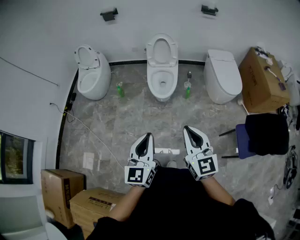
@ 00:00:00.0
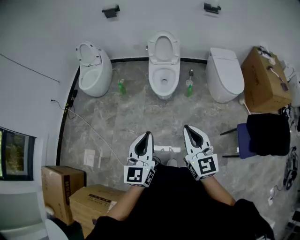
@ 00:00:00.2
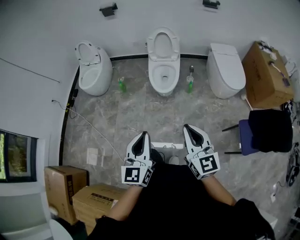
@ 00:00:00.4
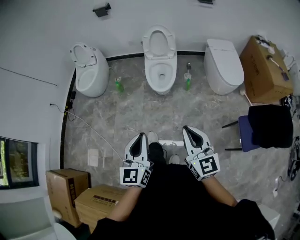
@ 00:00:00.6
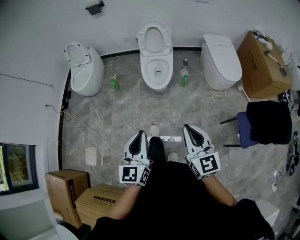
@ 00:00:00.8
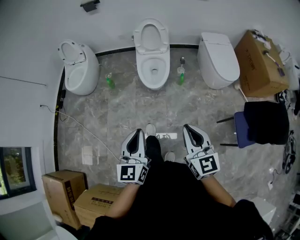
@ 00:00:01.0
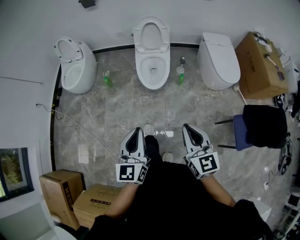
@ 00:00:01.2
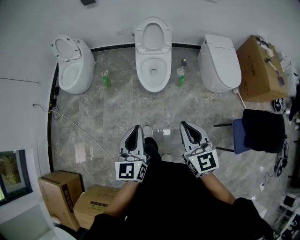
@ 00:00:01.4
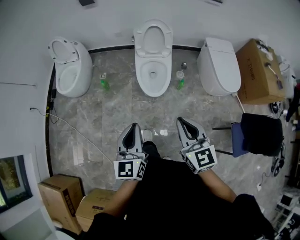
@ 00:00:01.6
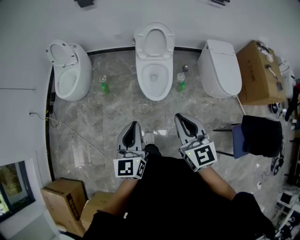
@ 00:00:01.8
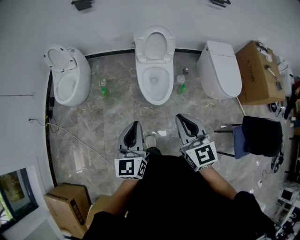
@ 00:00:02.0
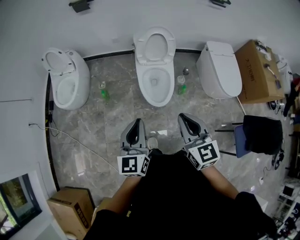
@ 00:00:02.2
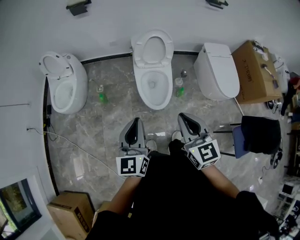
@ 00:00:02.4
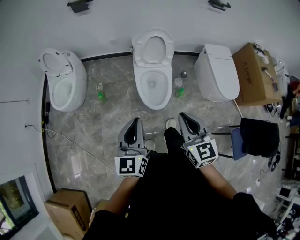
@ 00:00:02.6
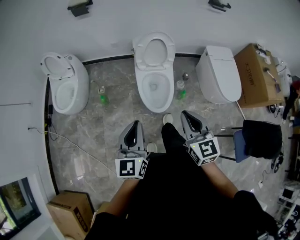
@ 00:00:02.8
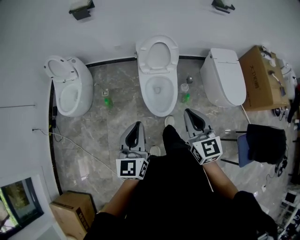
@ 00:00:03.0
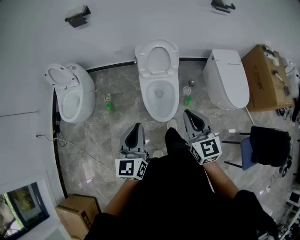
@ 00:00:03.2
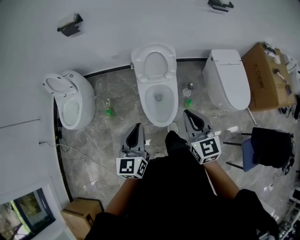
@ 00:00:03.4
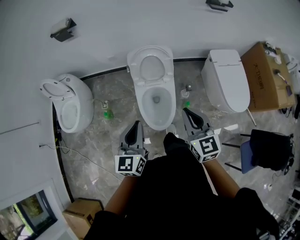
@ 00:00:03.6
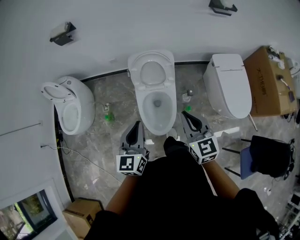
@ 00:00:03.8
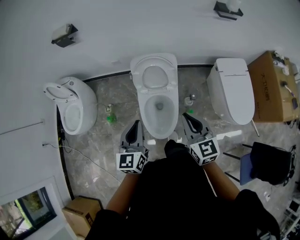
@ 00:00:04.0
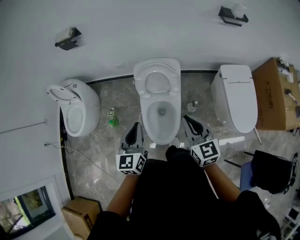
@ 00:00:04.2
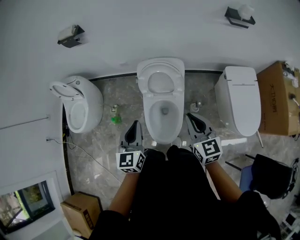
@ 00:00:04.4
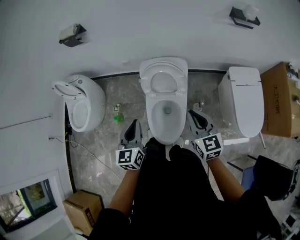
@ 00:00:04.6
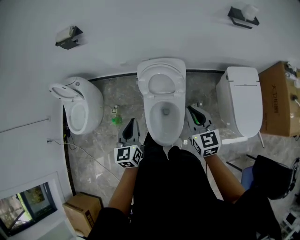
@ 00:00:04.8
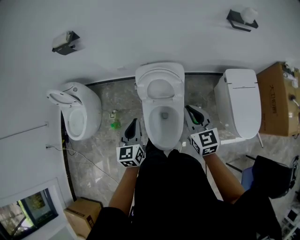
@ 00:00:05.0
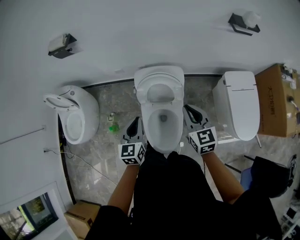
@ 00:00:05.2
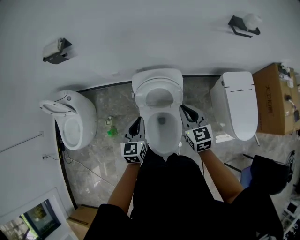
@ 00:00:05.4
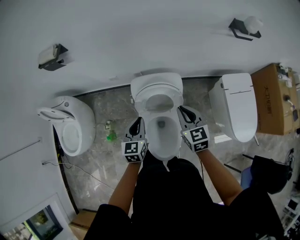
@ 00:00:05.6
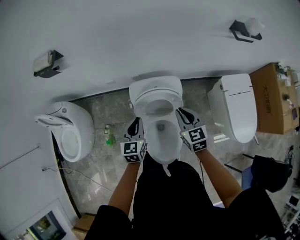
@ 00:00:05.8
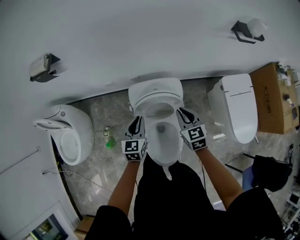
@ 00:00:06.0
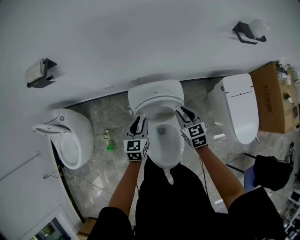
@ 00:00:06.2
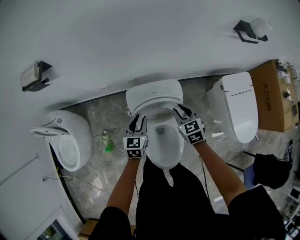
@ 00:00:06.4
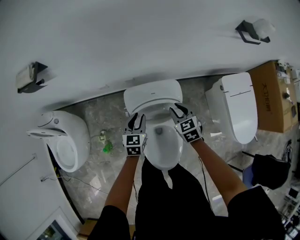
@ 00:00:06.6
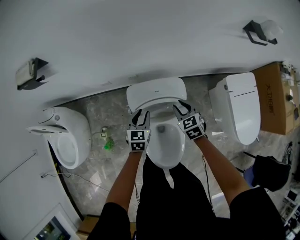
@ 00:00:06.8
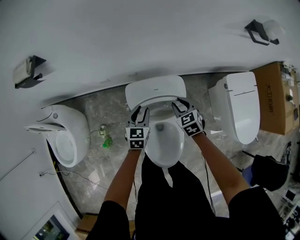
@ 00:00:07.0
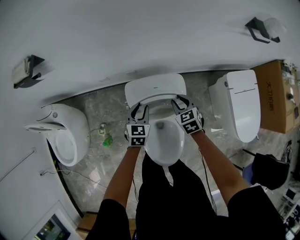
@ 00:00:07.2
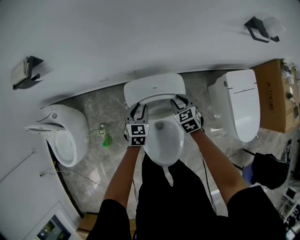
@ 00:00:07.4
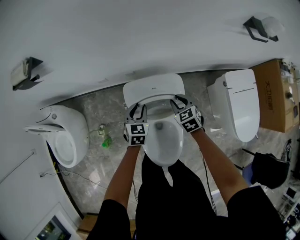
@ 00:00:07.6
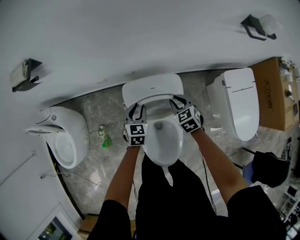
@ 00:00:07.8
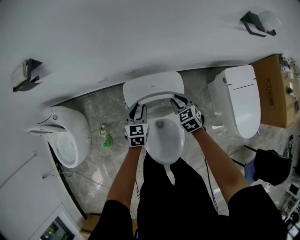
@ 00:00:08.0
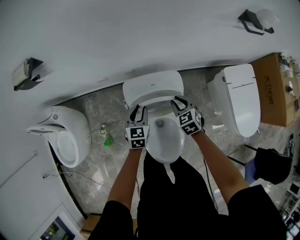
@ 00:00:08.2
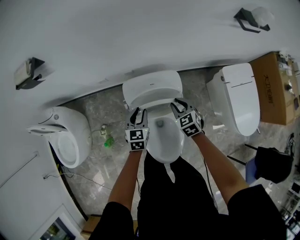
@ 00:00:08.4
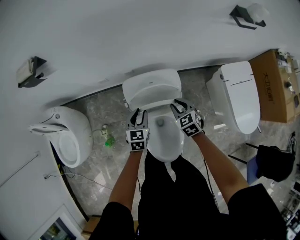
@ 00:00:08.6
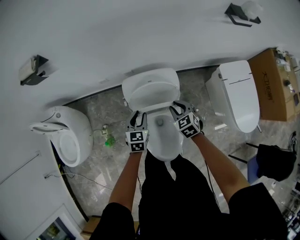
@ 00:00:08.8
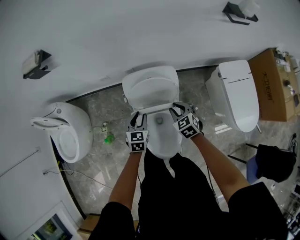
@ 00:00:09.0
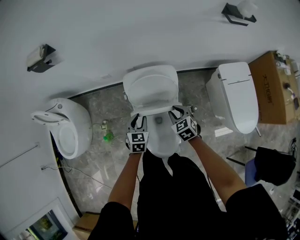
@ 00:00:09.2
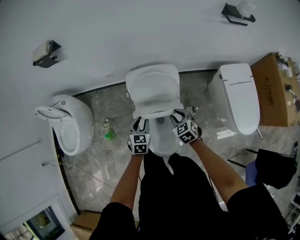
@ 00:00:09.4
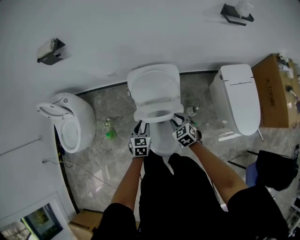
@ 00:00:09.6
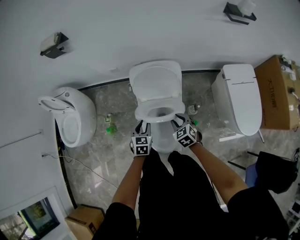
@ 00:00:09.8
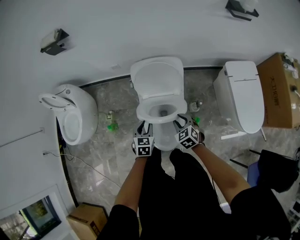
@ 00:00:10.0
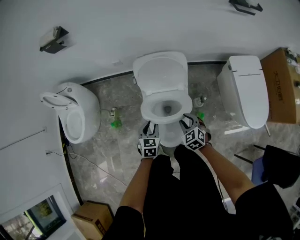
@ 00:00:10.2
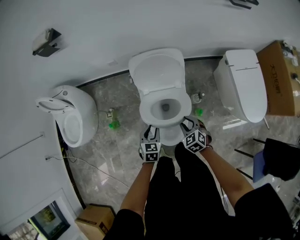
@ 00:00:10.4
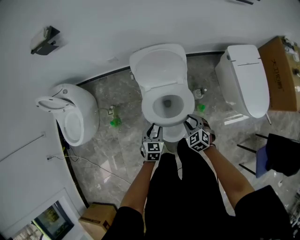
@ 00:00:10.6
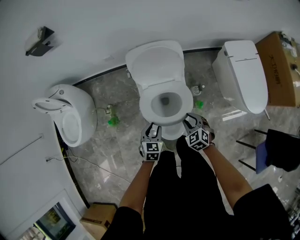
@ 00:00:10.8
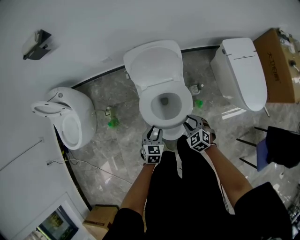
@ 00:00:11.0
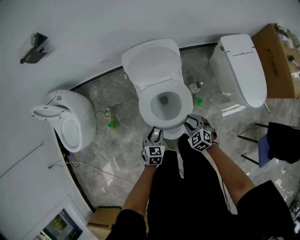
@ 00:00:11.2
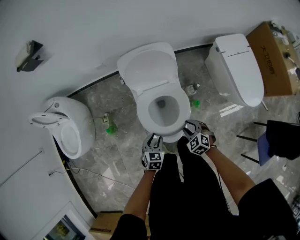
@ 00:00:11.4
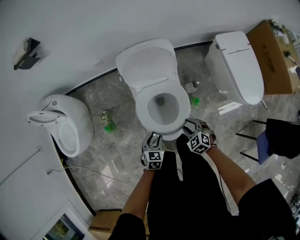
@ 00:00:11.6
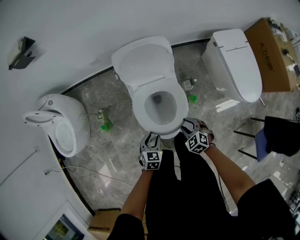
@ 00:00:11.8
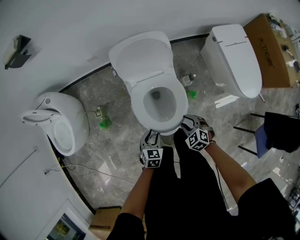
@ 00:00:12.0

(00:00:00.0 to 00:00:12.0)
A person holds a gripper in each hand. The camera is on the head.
00:00:00.0 - 00:00:01.6: The two grippers go some 25 cm forward.
00:00:01.6 - 00:00:03.0: The two grippers go some 20 cm forward.
00:00:03.0 - 00:00:04.4: Both grippers move forward and to the right, roughly 30 cm.
00:00:04.4 - 00:00:06.0: The grippers both shift forward and downward by about 30 cm.
00:00:06.0 - 00:00:07.6: Both grippers move downward and forward, approximately 15 cm. The left gripper opens up.
00:00:07.6 - 00:00:09.0: The grippers both shift backward by approximately 15 cm.
00:00:09.0 - 00:00:10.4: The grippers both shift backward by roughly 20 cm.
00:00:10.4 - 00:00:12.0: Both grippers travel together backward and downward, roughly 10 cm.

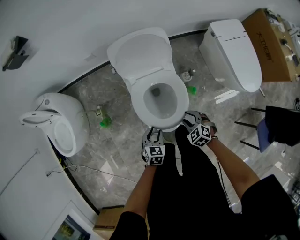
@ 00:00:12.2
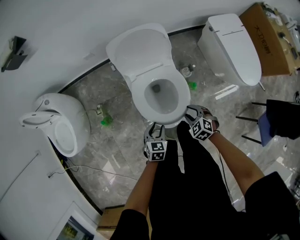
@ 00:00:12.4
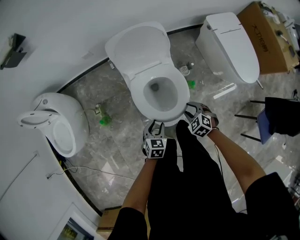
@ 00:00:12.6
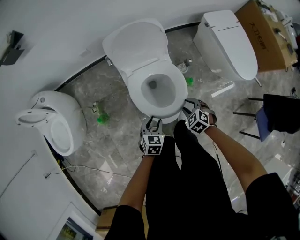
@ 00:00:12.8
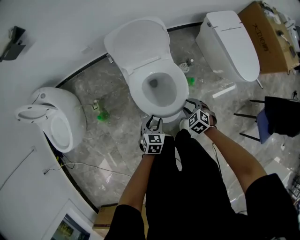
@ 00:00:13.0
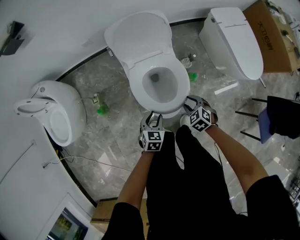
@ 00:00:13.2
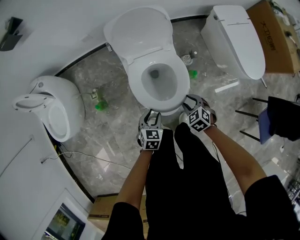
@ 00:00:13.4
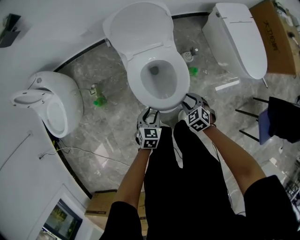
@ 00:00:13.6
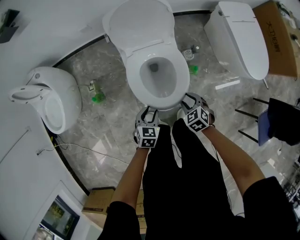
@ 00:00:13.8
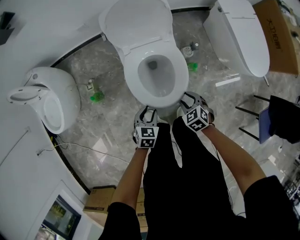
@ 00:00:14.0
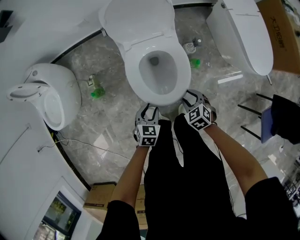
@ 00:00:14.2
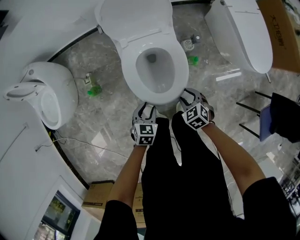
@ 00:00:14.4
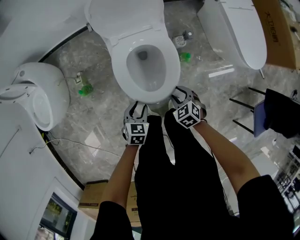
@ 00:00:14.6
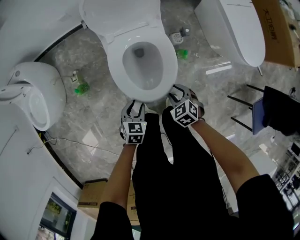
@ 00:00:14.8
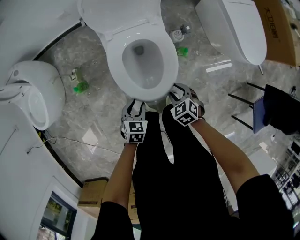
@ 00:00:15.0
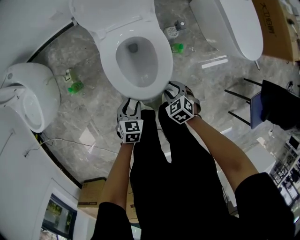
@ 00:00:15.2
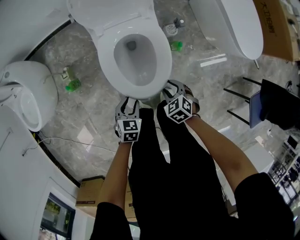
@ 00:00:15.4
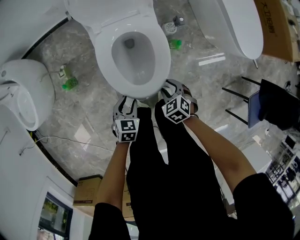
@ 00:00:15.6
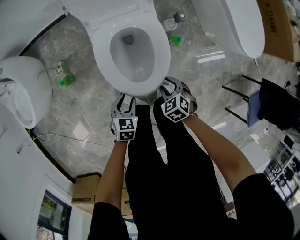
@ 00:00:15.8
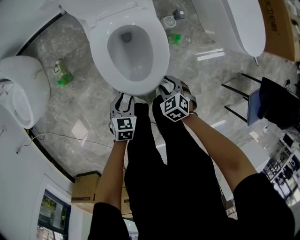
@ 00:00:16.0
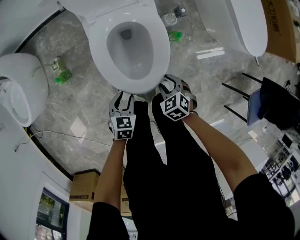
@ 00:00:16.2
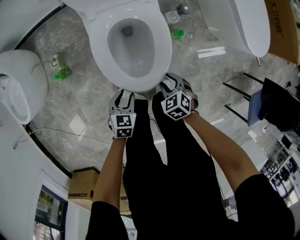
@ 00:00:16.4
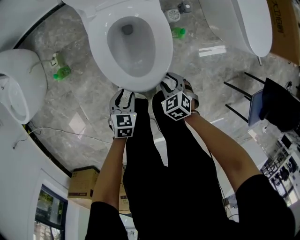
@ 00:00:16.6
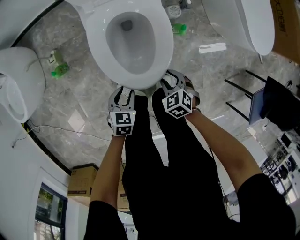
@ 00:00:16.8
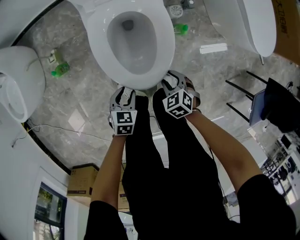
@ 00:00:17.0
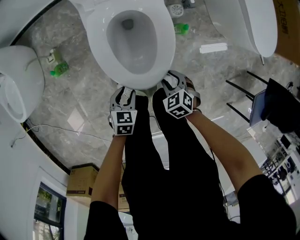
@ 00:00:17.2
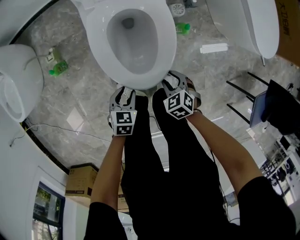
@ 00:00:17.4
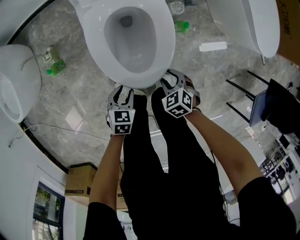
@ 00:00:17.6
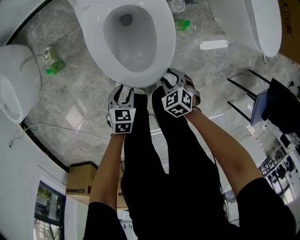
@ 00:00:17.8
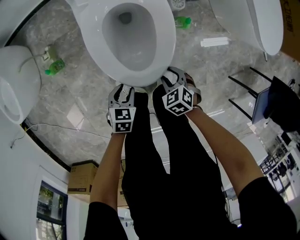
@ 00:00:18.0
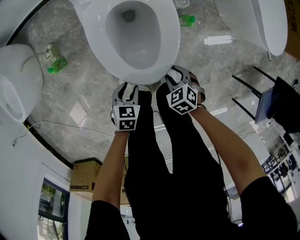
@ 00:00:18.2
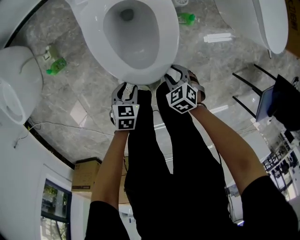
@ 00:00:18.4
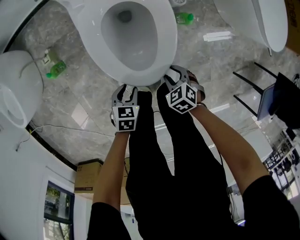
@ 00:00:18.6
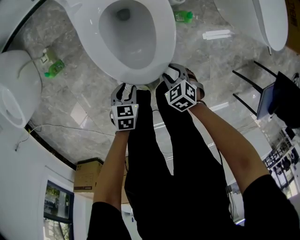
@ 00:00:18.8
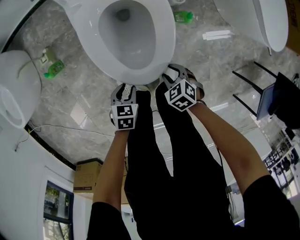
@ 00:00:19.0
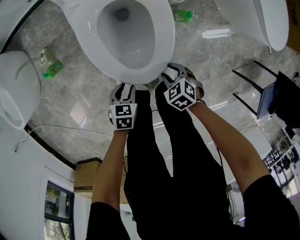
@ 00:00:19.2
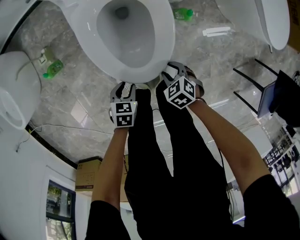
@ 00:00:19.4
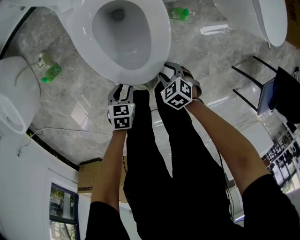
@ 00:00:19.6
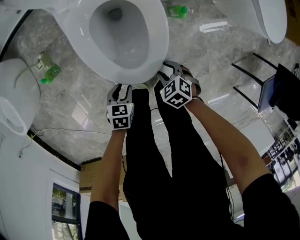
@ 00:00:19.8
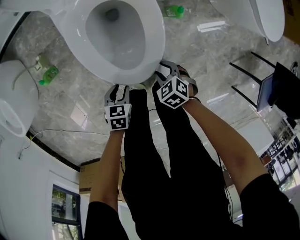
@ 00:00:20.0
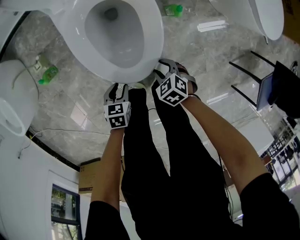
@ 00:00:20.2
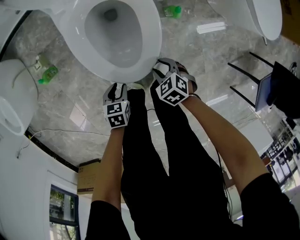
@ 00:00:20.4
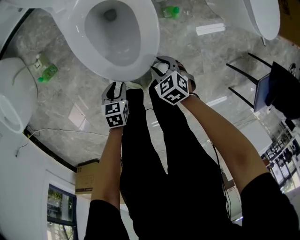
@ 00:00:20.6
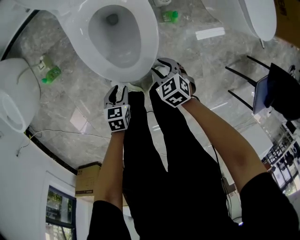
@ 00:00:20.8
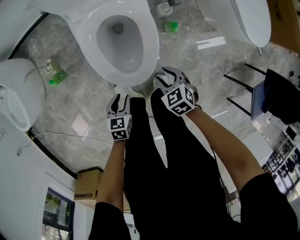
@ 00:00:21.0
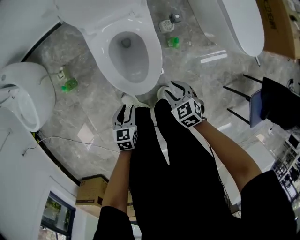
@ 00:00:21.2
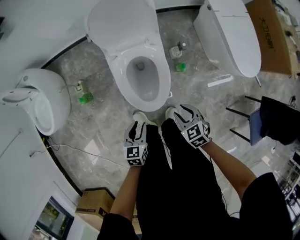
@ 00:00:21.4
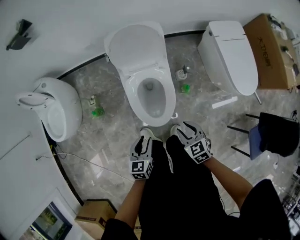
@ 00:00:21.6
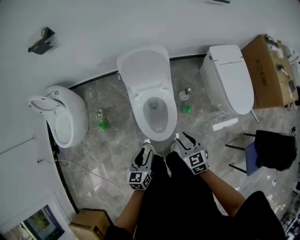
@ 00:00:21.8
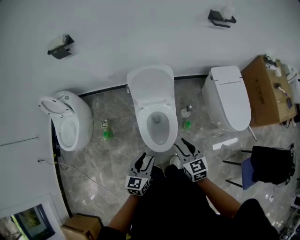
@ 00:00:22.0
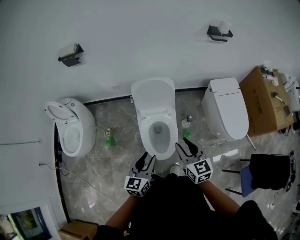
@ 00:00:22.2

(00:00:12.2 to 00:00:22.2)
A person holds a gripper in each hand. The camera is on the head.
00:00:12.2 - 00:00:13.6: The grippers make only small movements.
00:00:13.6 - 00:00:15.0: The two grippers go roughly 5 cm downward.
00:00:15.0 - 00:00:16.4: Both grippers move downward, some 5 cm.
00:00:16.4 - 00:00:18.0: Both grippers travel together downward, some 10 cm.
00:00:18.0 - 00:00:19.4: The grippers move only a little.
00:00:19.4 - 00:00:20.8: The right gripper moves upward, some 5 cm.
00:00:20.8 - 00:00:22.2: The grippers both shift upward by roughly 60 cm. The left gripper tips its fingers upward by some 40 degrees. The right gripper tips its fingers upward by about 40 degrees.

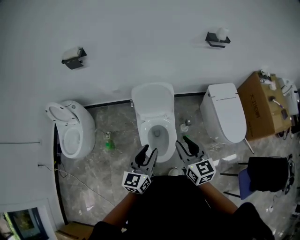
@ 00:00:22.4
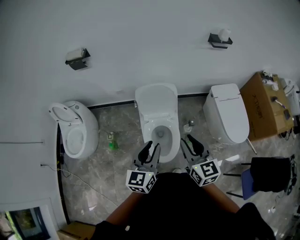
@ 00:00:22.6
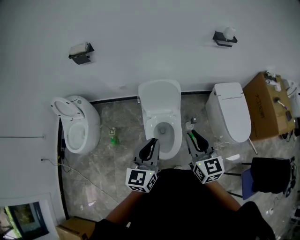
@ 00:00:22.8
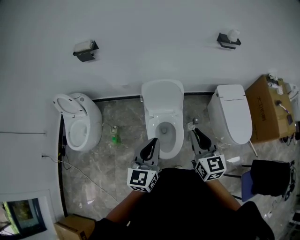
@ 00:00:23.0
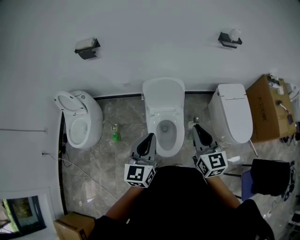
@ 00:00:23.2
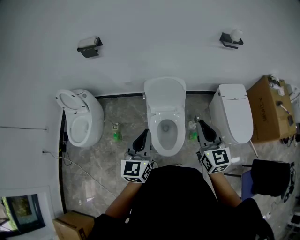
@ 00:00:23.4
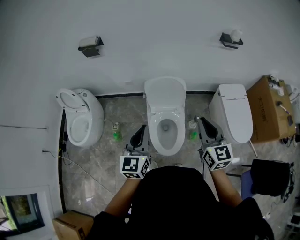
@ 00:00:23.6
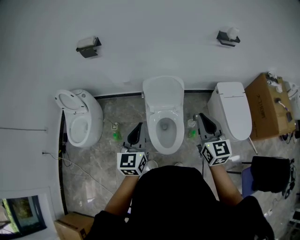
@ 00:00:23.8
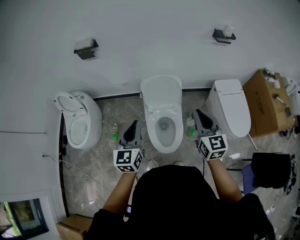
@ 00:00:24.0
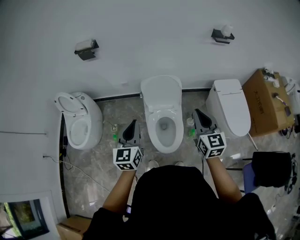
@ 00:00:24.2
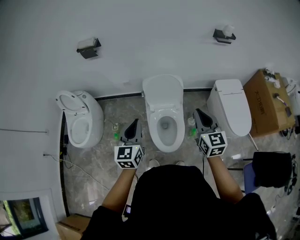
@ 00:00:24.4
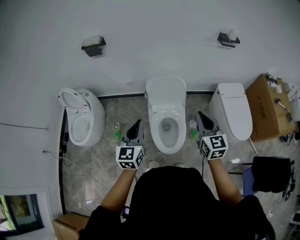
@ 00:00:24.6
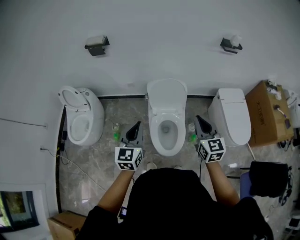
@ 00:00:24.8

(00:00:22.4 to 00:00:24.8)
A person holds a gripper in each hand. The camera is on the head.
00:00:22.4 - 00:00:23.6: The left gripper goes approximately 10 cm to the left and upward, and closes up. The right gripper shifts some 5 cm upward, and closes its fingers.
00:00:23.6 - 00:00:24.8: The left gripper goes about 5 cm to the left.
